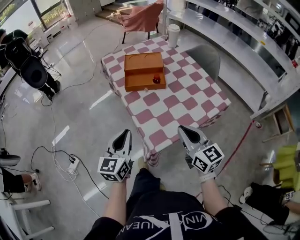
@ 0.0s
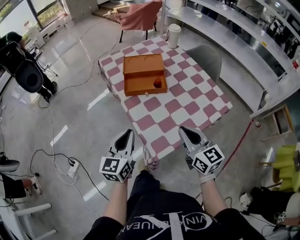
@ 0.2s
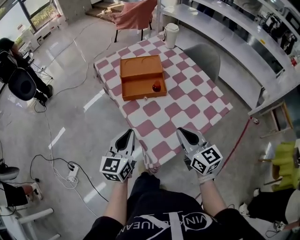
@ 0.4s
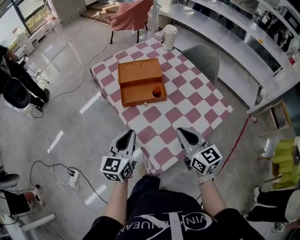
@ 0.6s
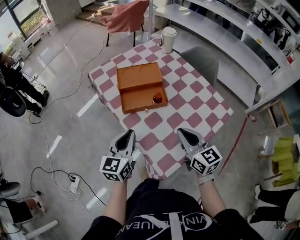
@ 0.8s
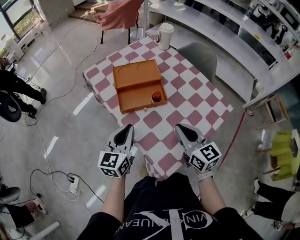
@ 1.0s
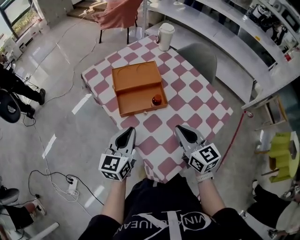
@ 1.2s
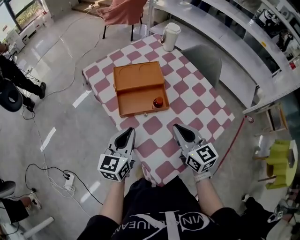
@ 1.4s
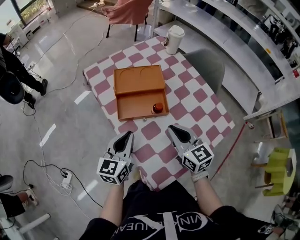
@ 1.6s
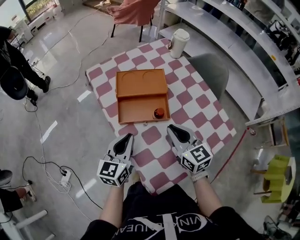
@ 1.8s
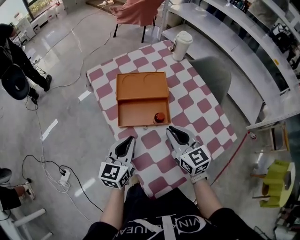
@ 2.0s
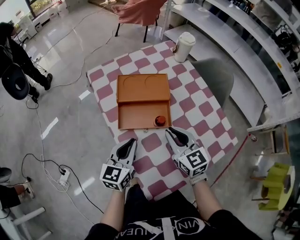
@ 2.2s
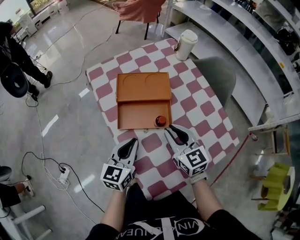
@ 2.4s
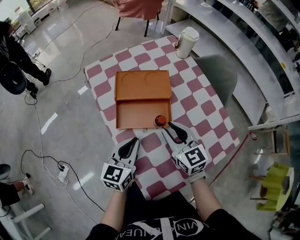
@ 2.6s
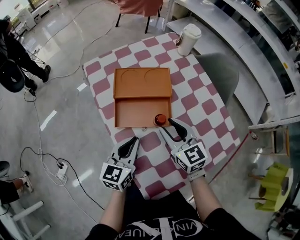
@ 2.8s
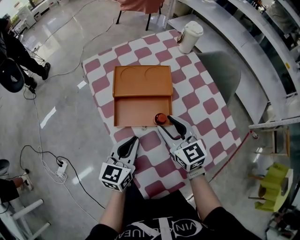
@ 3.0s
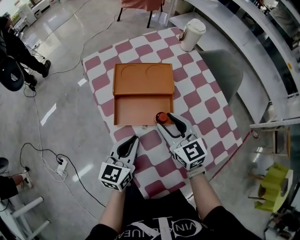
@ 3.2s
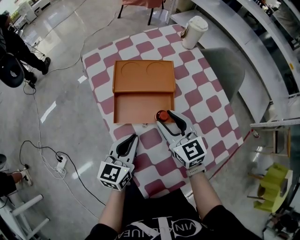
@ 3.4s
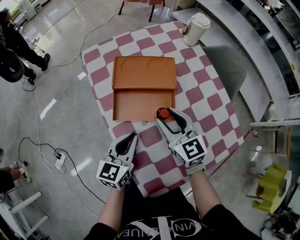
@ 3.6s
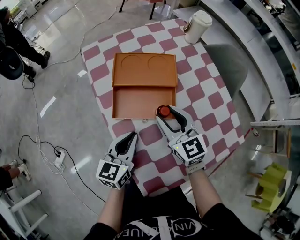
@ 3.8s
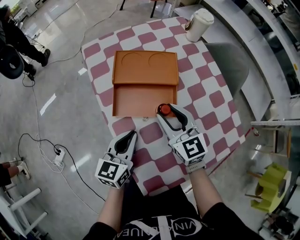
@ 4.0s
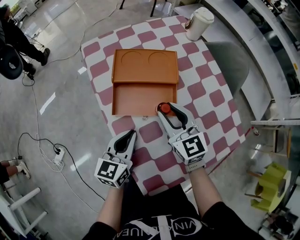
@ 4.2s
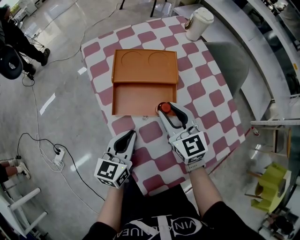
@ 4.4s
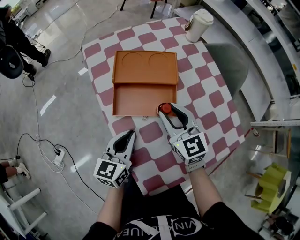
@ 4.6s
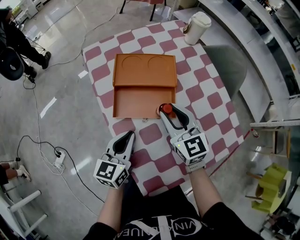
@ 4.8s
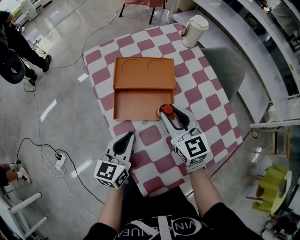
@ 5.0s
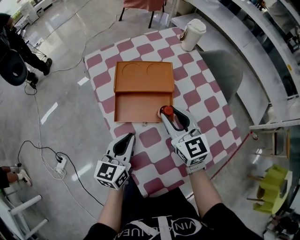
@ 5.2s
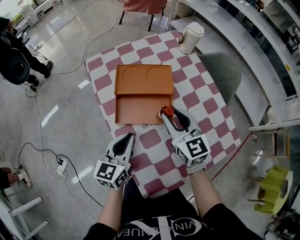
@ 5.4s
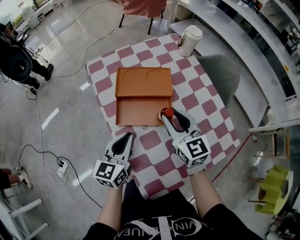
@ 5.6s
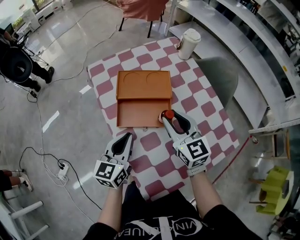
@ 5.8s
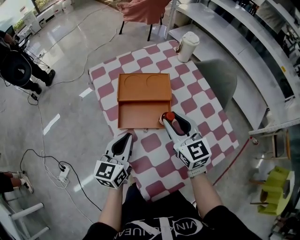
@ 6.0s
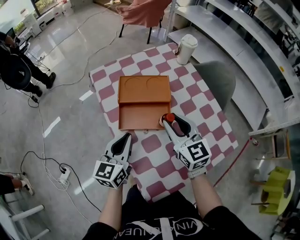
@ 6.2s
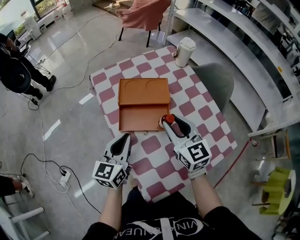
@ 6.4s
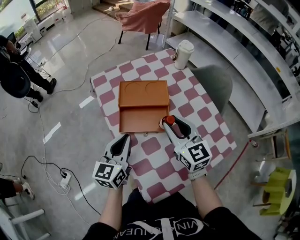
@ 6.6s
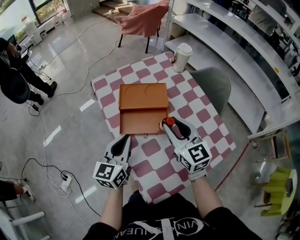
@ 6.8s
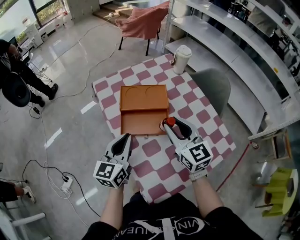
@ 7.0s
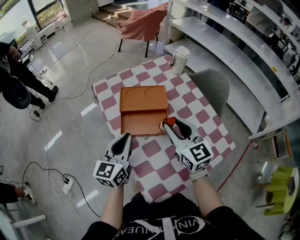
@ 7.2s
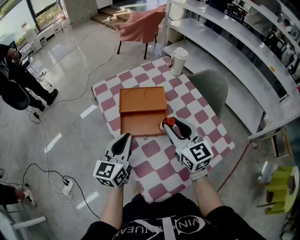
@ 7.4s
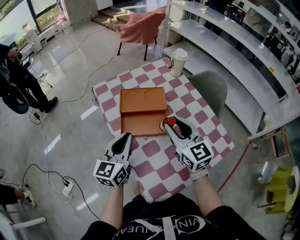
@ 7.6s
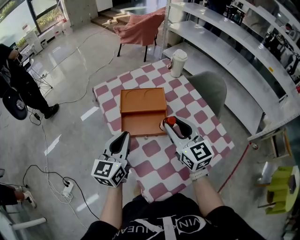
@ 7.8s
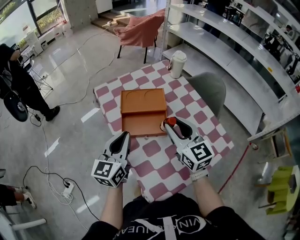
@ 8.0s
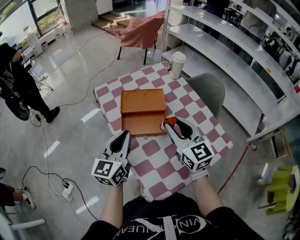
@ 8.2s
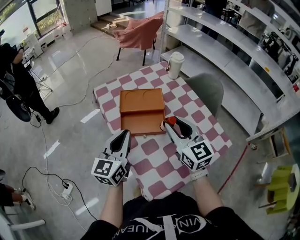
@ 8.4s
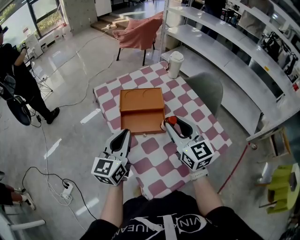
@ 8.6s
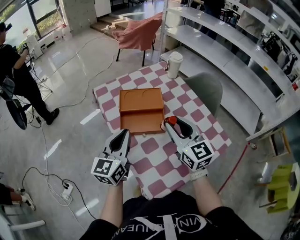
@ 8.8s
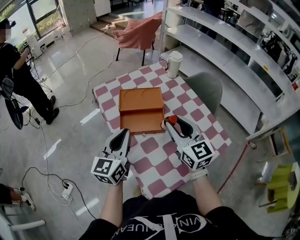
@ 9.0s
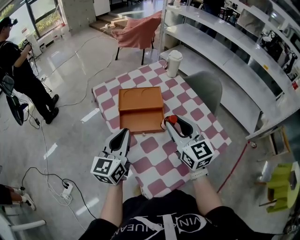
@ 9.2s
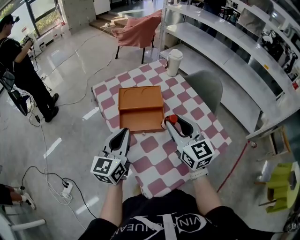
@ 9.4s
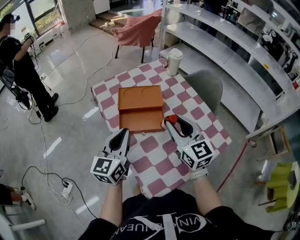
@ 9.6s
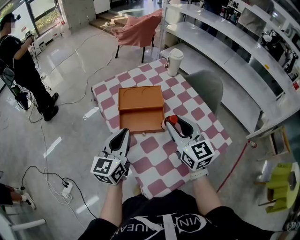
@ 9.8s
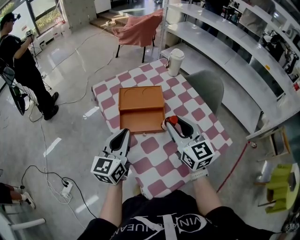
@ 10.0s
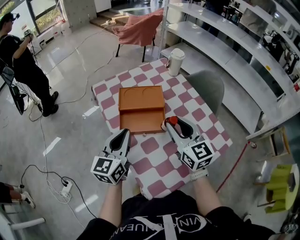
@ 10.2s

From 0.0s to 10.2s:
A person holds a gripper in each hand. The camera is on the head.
From 0.0s to 1.4s: The two grippers go approximately 20 cm forward.
From 1.4s to 3.0s: The left gripper ends up approximately 5 cm from where it was. The right gripper is displaced forward by some 10 cm, and opens its fingers.
From 3.0s to 4.4s: There are only small adjustments of the grippers.
From 4.4s to 5.8s: The grippers both shift upward by about 5 cm.
From 5.8s to 7.2s: Both grippers move upward, some 5 cm.
From 7.2s to 8.8s: The right gripper ends up roughly 5 cm from where it was.
From 8.8s to 10.2s: The grippers make only small movements.

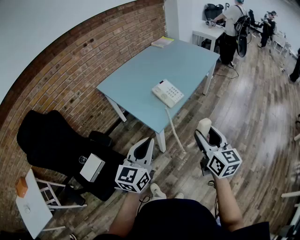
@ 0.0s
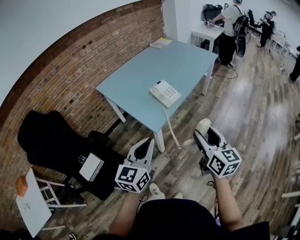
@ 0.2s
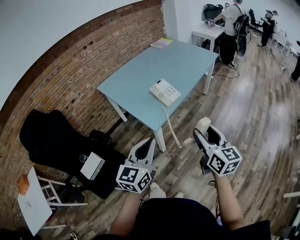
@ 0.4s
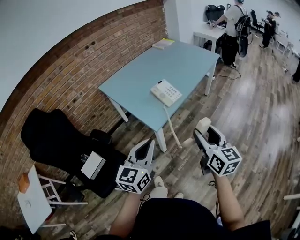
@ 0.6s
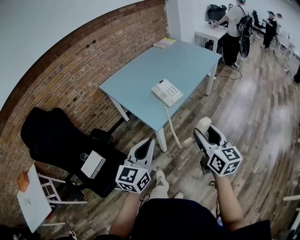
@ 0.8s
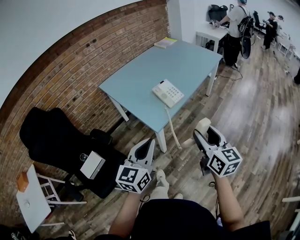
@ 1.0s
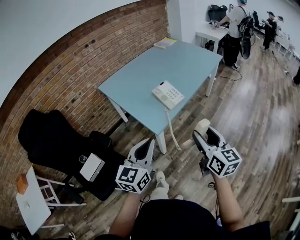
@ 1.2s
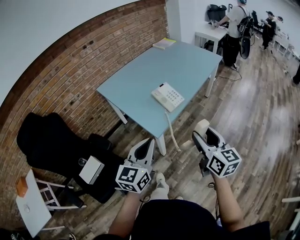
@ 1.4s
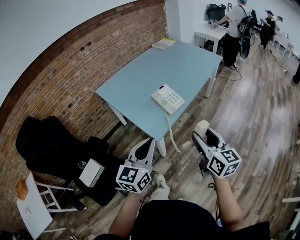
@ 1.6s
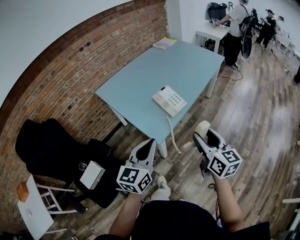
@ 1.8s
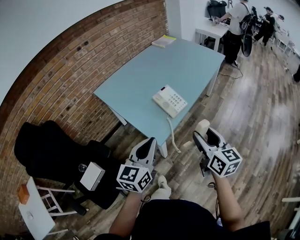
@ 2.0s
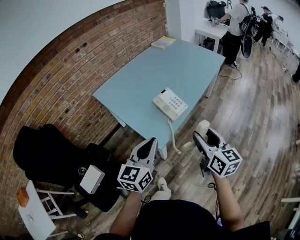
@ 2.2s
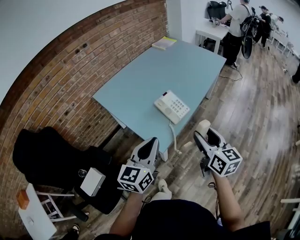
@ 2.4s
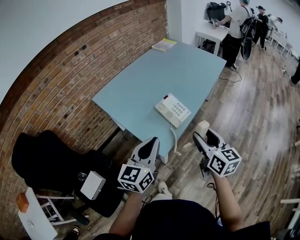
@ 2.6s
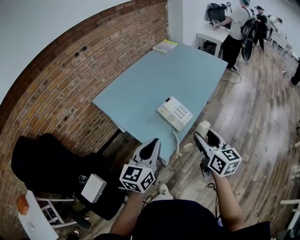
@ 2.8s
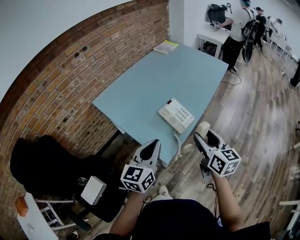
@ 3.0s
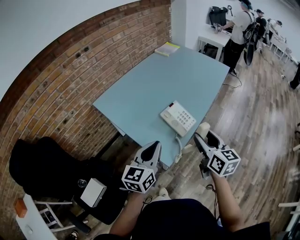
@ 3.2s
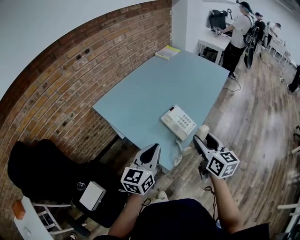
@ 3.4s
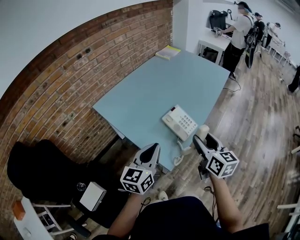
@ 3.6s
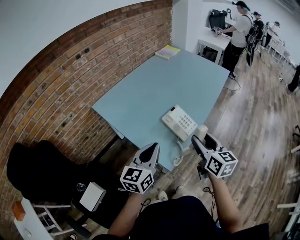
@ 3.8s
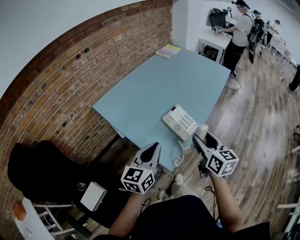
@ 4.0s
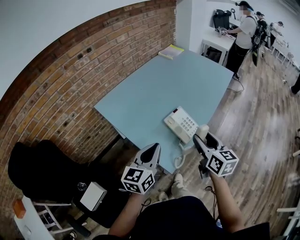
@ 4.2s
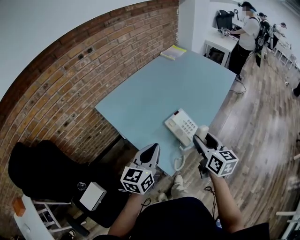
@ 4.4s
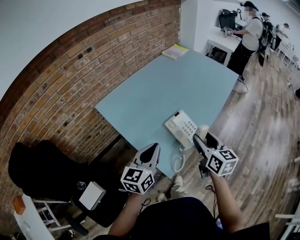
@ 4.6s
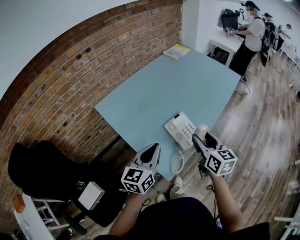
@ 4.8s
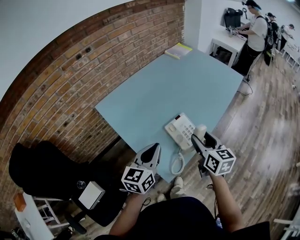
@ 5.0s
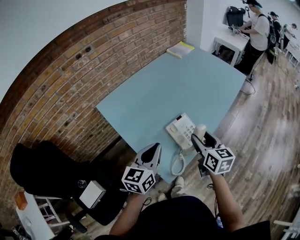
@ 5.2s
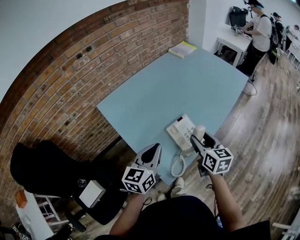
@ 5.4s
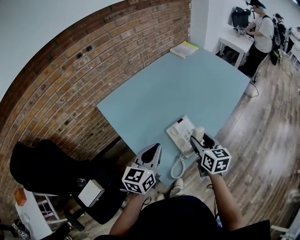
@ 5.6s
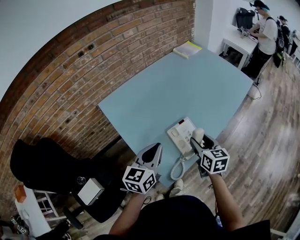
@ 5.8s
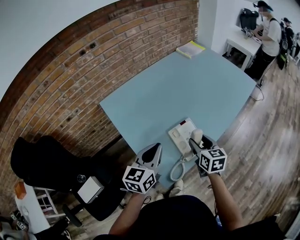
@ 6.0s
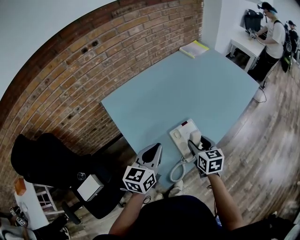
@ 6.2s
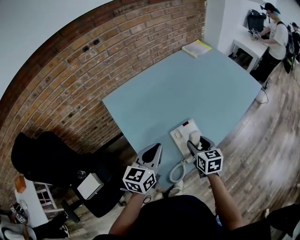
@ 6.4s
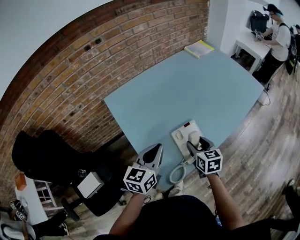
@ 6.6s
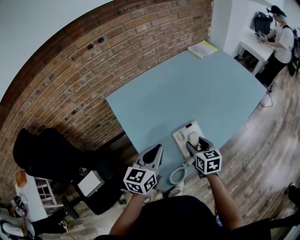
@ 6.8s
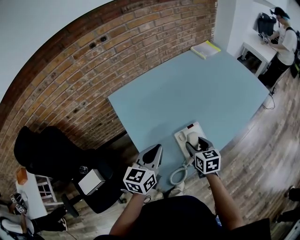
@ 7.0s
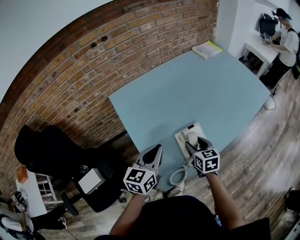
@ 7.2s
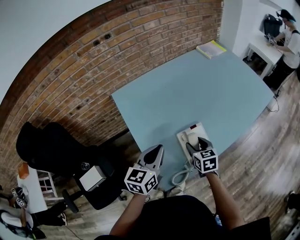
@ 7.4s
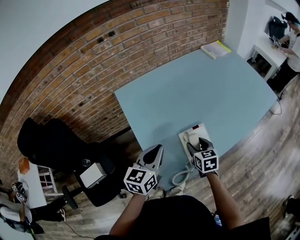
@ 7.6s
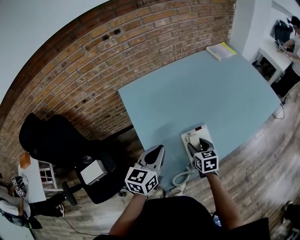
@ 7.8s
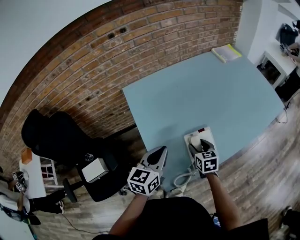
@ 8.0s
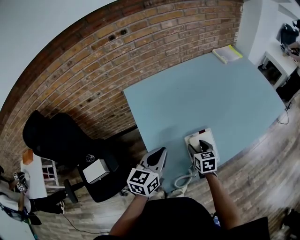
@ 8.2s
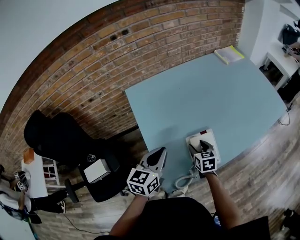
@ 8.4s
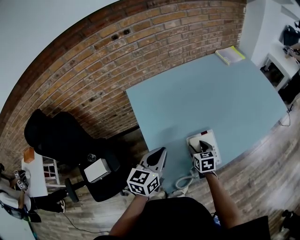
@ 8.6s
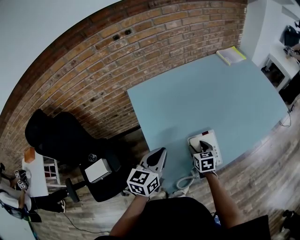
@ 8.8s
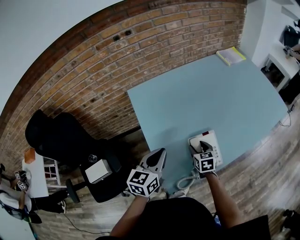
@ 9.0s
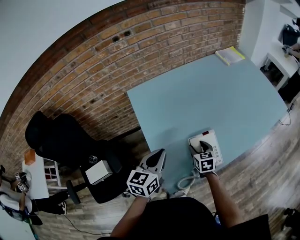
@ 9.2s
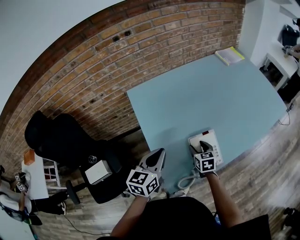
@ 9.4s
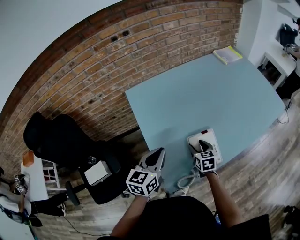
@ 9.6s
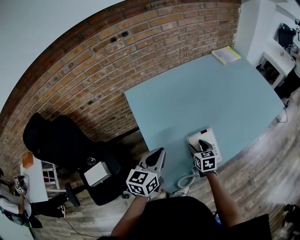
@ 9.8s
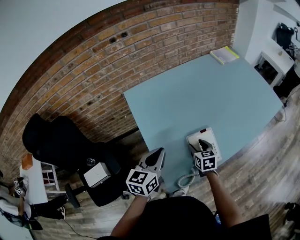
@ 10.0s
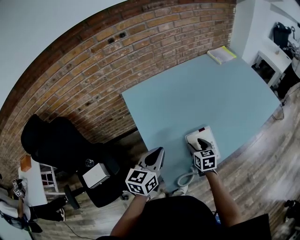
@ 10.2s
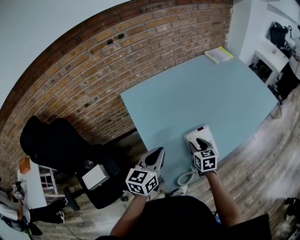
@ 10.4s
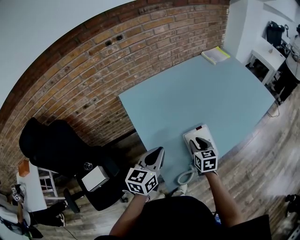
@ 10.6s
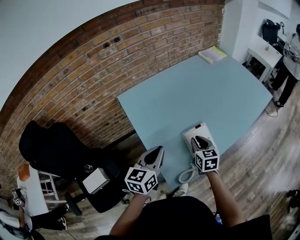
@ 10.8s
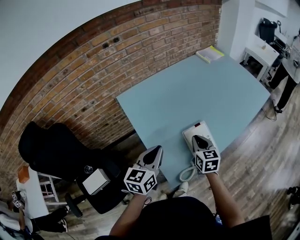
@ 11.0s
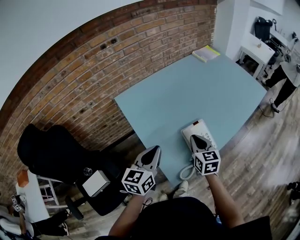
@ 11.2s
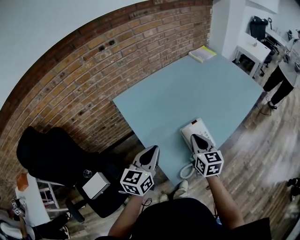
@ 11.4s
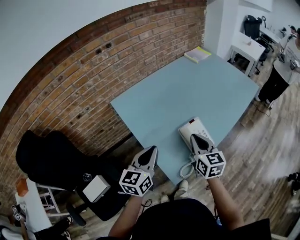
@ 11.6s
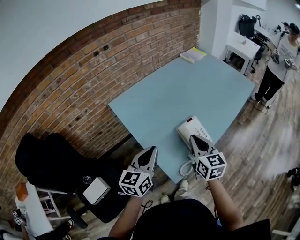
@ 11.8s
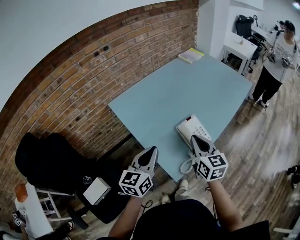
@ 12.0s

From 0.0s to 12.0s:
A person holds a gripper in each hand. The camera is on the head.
From 0.0s to 1.6s: The grippers both shift forward by some 5 cm.
From 1.6s to 3.0s: The left gripper shifts about 15 cm forward, while the right gripper goes roughly 15 cm forward and to the left.
From 3.0s to 4.4s: Both grippers move forward, approximately 5 cm.
From 4.4s to 6.0s: The left gripper heads forward, covering some 10 cm. The right gripper is displaced forward and downward by some 15 cm.
From 6.0s to 7.6s: The right gripper travels downward by approximately 5 cm.
From 7.6s to 9.0s: The right gripper travels downward by roughly 5 cm.
From 9.0s to 10.4s: The right gripper moves some 5 cm.
From 10.4s to 12.0s: The left gripper shifts approximately 10 cm backward and upward. The right gripper is displaced upward and backward by approximately 20 cm, changes its angle by some 30 degrees, and closes.

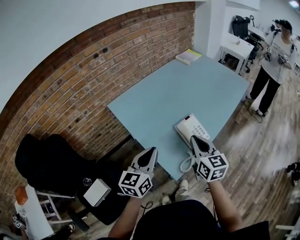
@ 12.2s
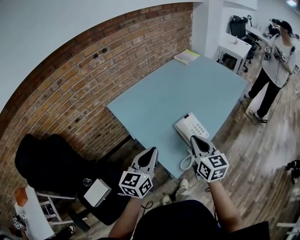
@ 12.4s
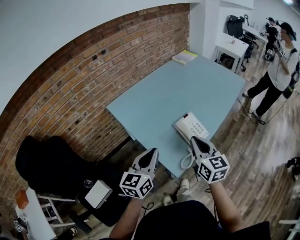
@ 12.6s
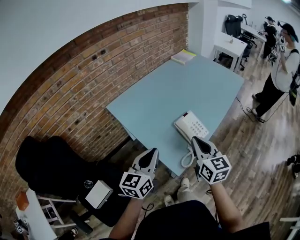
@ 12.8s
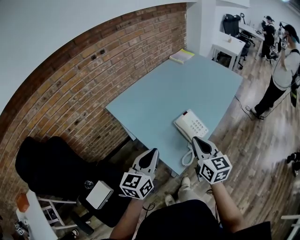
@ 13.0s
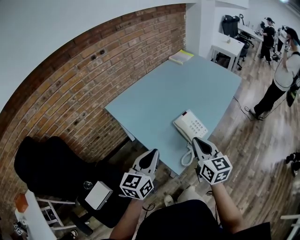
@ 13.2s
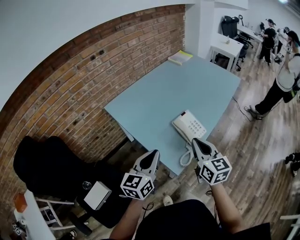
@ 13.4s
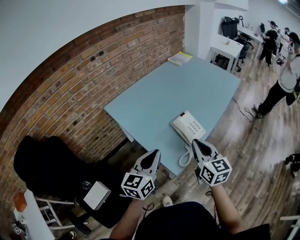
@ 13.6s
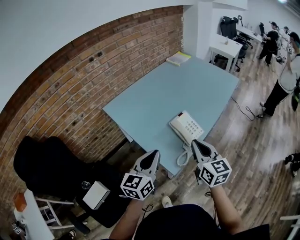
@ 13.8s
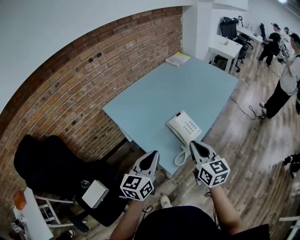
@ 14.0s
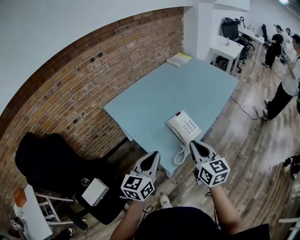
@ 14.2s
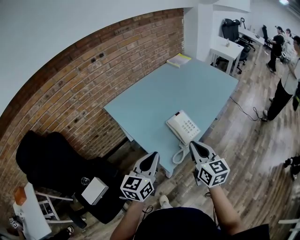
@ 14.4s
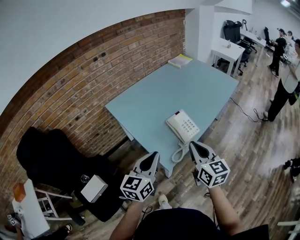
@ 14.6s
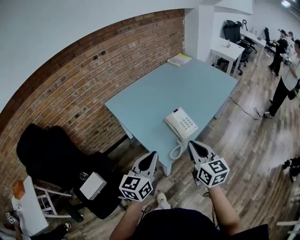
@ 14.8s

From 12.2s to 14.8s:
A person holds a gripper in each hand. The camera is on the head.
From 12.2s to 13.4s: The right gripper travels backward by some 5 cm.
From 13.4s to 14.8s: The left gripper travels backward and to the right by some 10 cm. Meanwhile the right gripper travels backward by about 5 cm.
